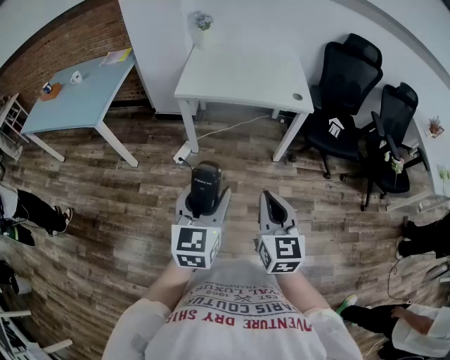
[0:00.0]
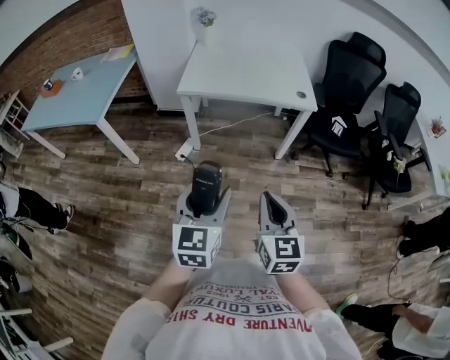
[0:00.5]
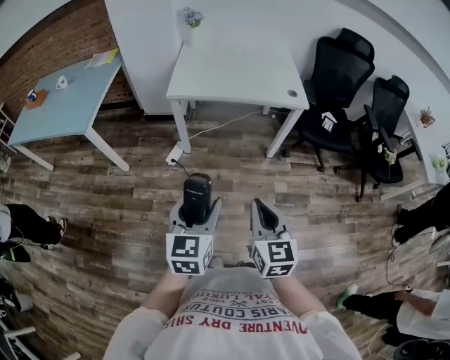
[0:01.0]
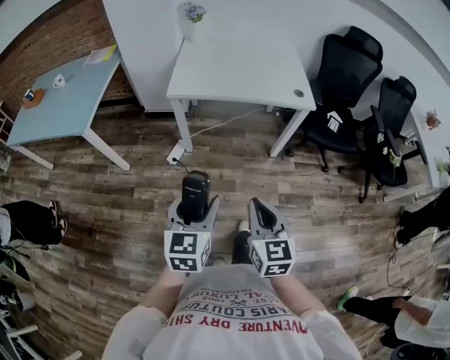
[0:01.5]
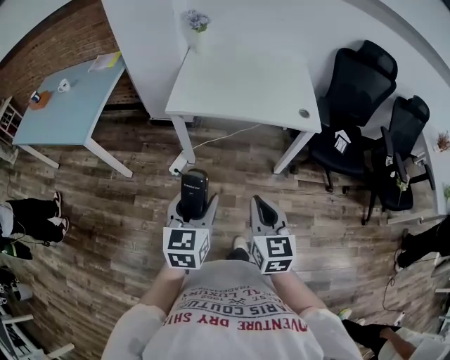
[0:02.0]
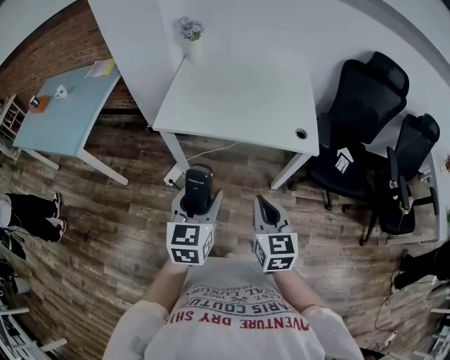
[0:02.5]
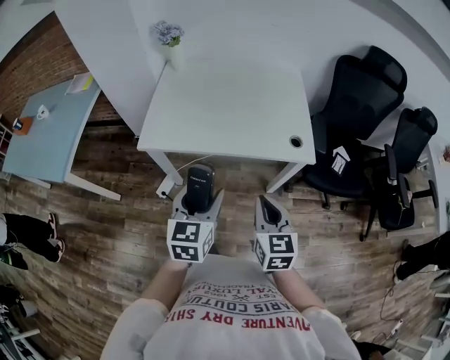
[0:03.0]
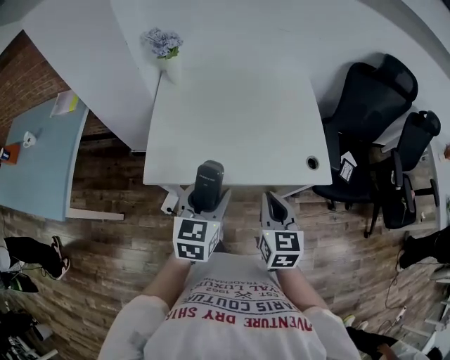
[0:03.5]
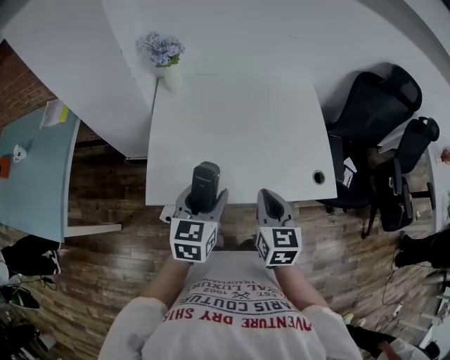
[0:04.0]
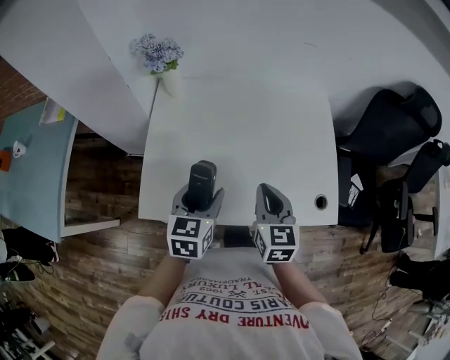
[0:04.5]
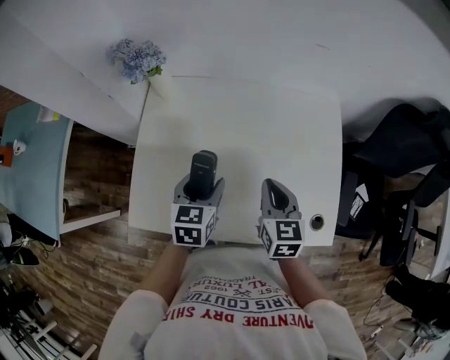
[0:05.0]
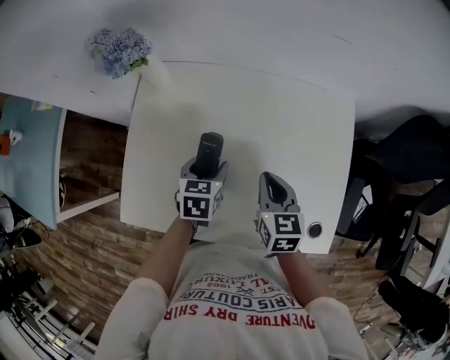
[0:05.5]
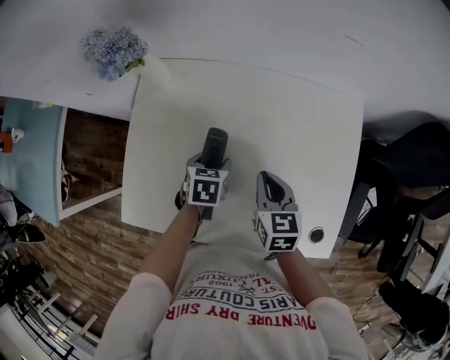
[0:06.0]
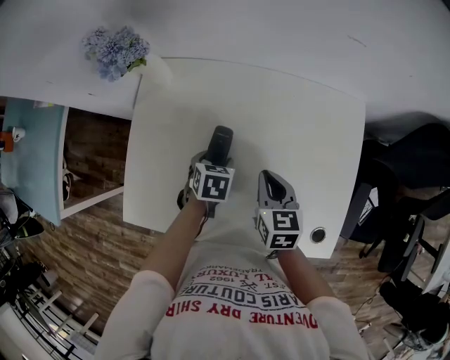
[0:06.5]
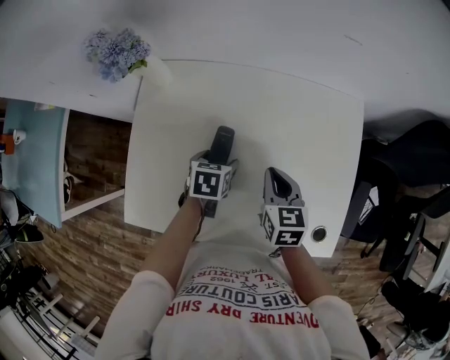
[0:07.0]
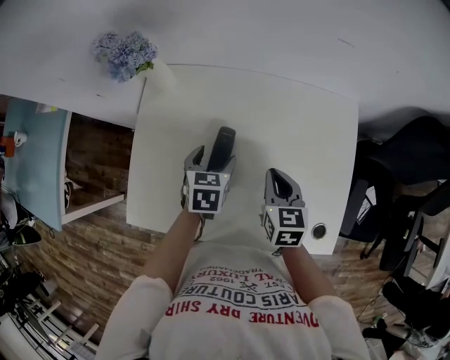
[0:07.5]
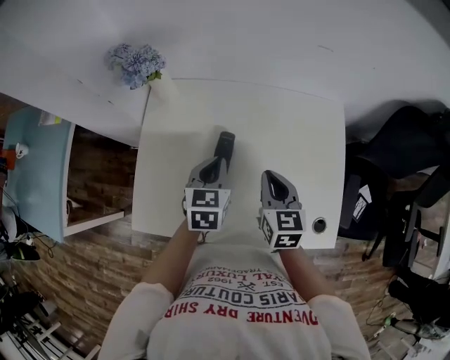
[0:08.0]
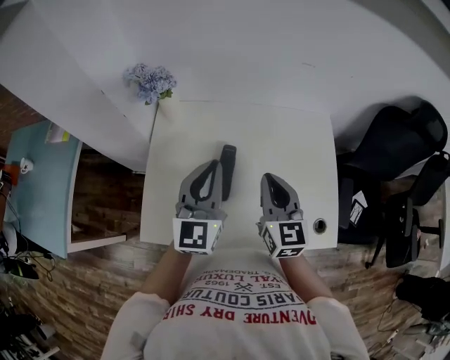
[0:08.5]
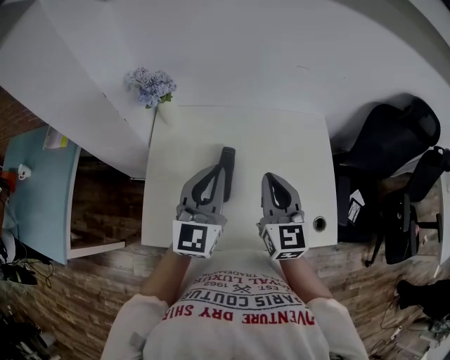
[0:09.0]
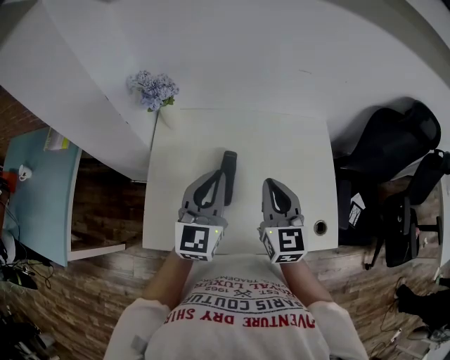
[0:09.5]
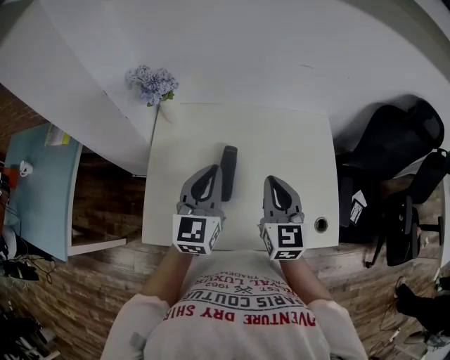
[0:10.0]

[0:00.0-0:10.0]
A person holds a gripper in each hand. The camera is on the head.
0:00.0 to 0:02.0: Both grippers travel together forward, some 20 cm.
0:02.0 to 0:04.0: The pair of grippers is taken forward, roughly 50 cm.
0:04.0 to 0:06.0: The grippers both shift forward and downward by some 30 cm. The left gripper angles its fingers downward, by about 40 degrees. The right gripper swivels approximately 20 degrees.
0:06.0 to 0:08.0: The right gripper shifts some 5 cm upward. The left gripper heads upward, covering approximately 15 cm, rotates some 30 degrees, and closes its fingers.
0:08.0 to 0:10.0: Both grippers move upward, some 10 cm. The left gripper swivels approximately 30 degrees.

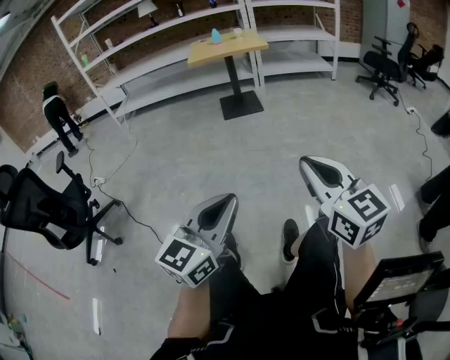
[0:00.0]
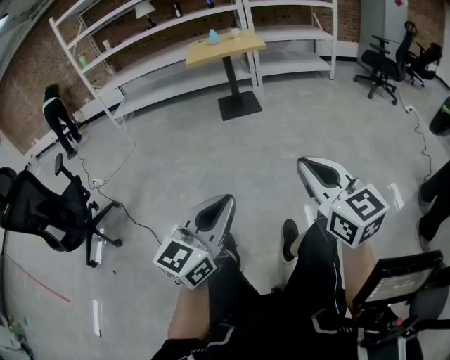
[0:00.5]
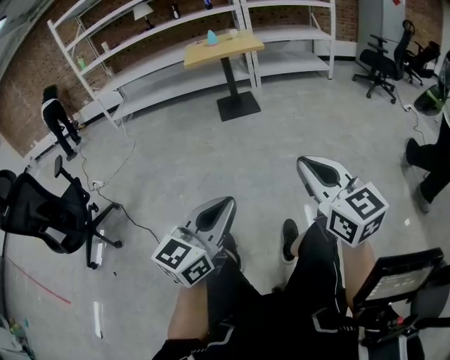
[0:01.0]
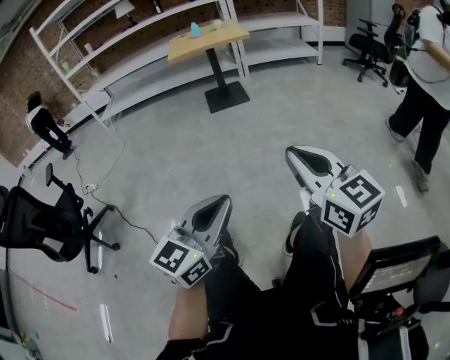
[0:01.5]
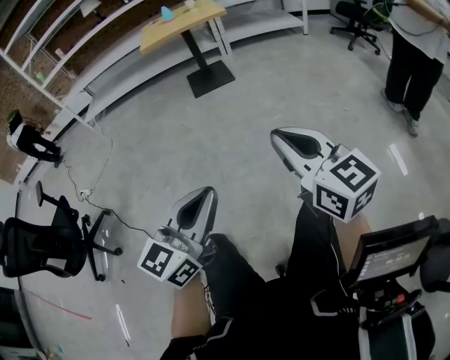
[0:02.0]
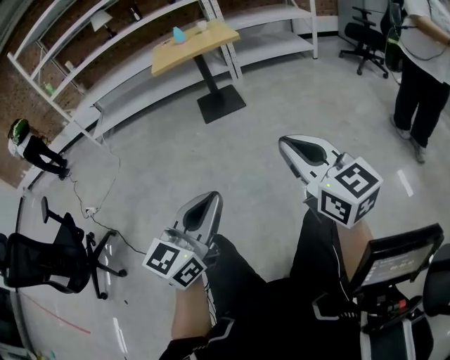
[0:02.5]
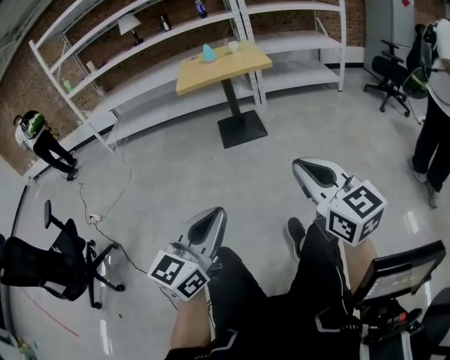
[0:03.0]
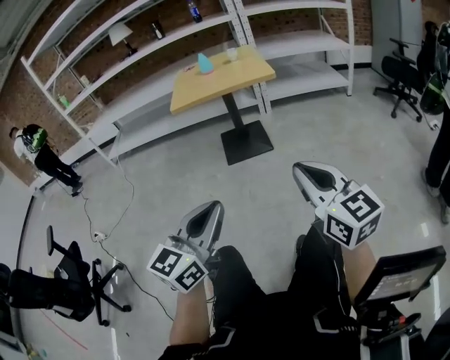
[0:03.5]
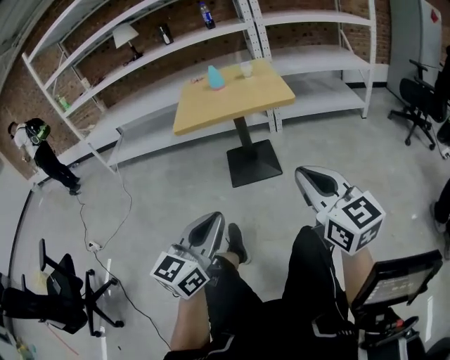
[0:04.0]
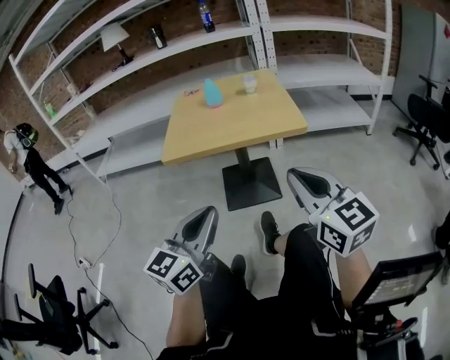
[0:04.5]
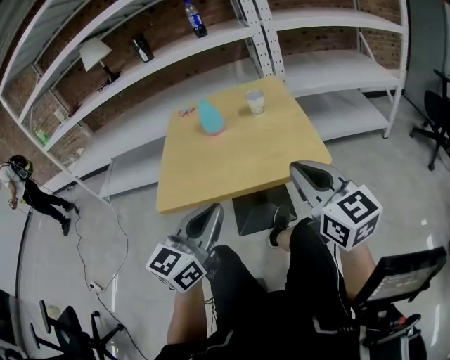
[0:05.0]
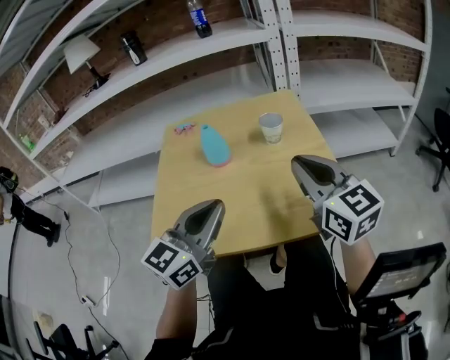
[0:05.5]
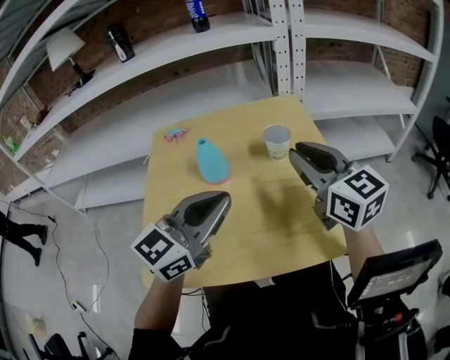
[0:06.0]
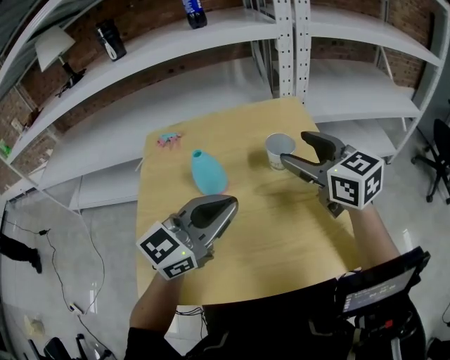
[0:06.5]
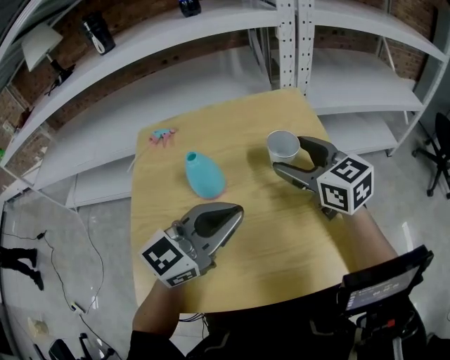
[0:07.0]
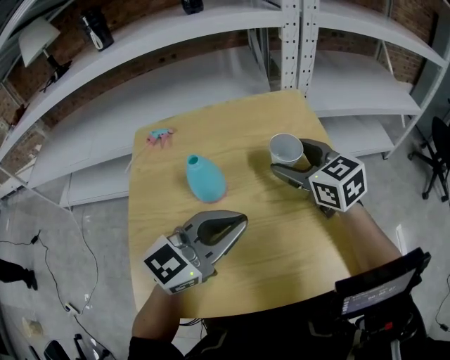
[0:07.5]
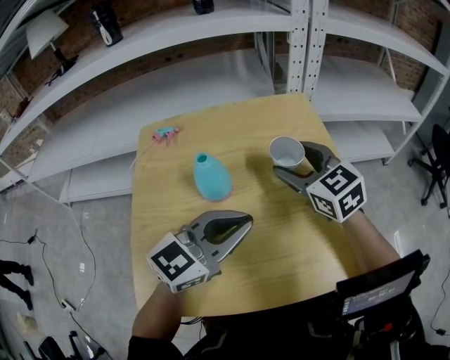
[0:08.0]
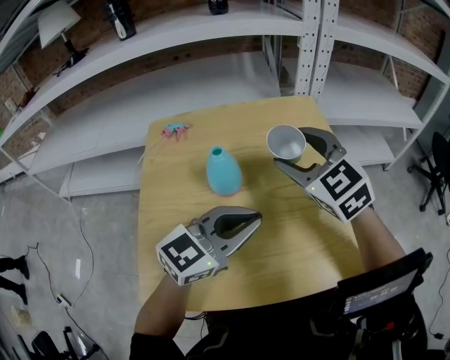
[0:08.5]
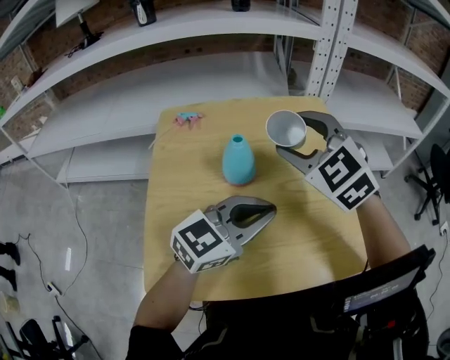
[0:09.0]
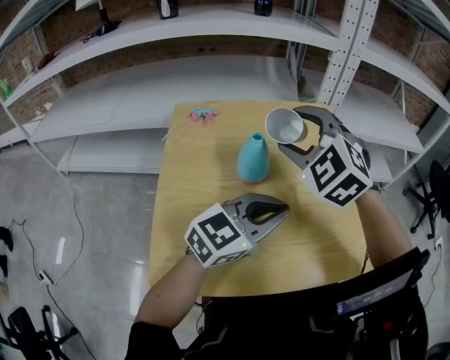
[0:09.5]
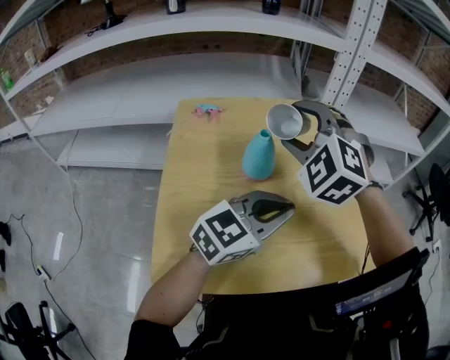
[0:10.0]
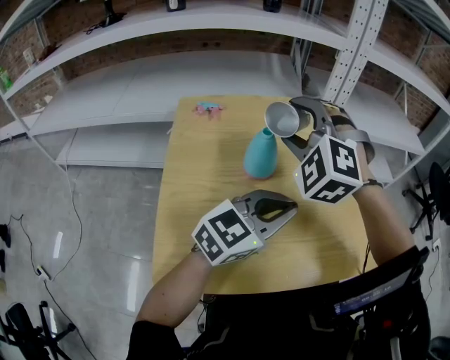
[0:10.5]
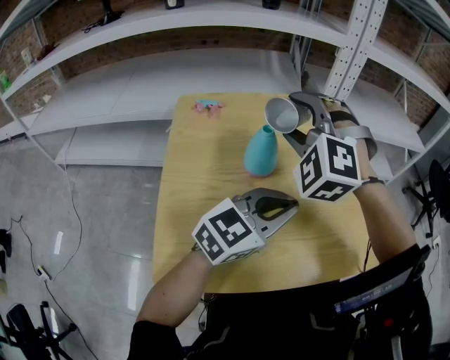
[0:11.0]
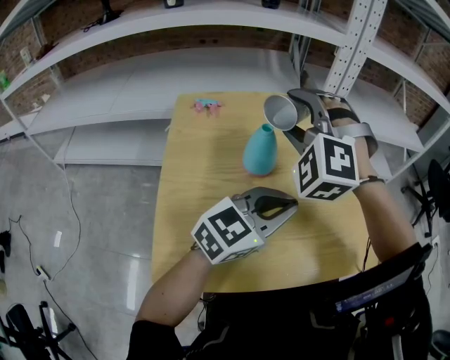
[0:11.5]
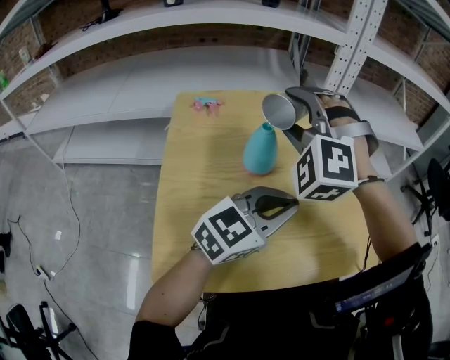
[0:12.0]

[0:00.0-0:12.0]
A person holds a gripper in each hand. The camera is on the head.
0:00.0 to 0:02.0: Both grippers move forward, about 10 cm.
0:02.0 to 0:04.0: The pair of grippers is taken forward, some 50 cm.
0:04.0 to 0:06.0: The two grippers travel together, forward, about 70 cm. The left gripper changes its angle by some 20 degrees.
0:06.0 to 0:08.0: The left gripper heads downward, covering about 5 cm, while the right gripper travels forward, downward and to the left by about 15 cm, turns by roughly 20 degrees, and opens.
0:08.0 to 0:10.0: The right gripper travels to the left, upward and backward by roughly 15 cm, and rolls counterclockwise, seen from behind, by roughly 50 degrees.
0:10.0 to 0:12.0: There are only small adjustments of the grippers.

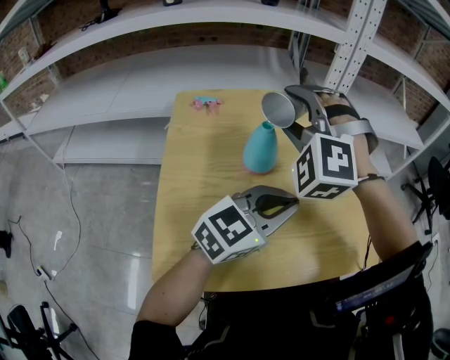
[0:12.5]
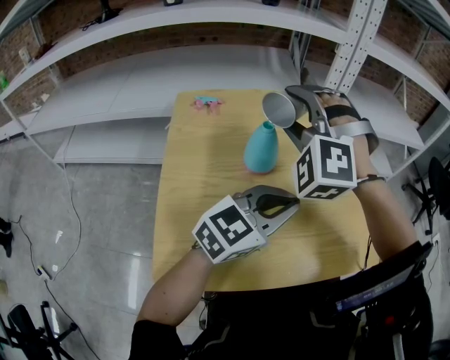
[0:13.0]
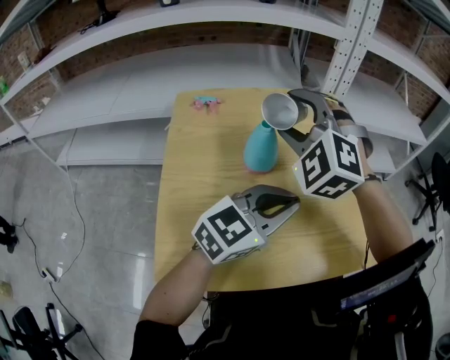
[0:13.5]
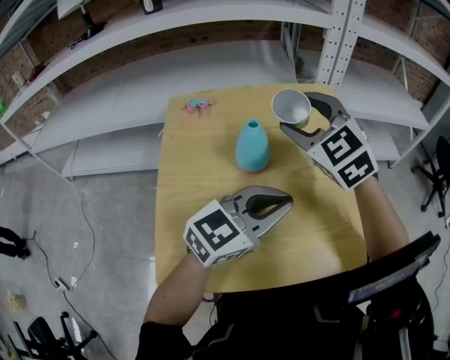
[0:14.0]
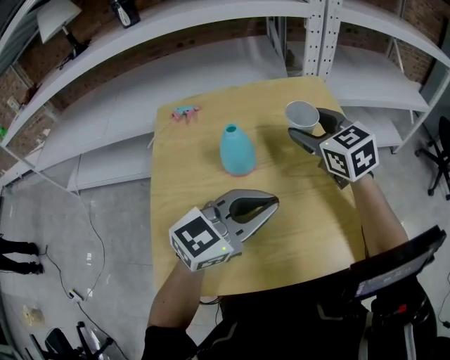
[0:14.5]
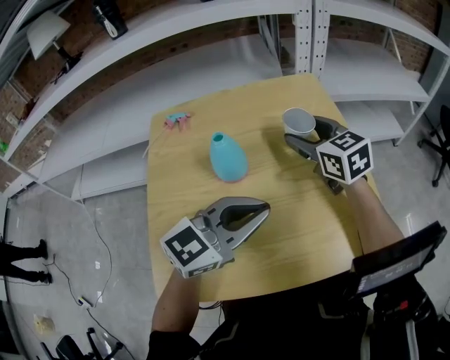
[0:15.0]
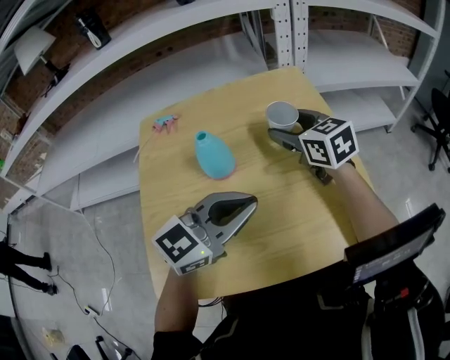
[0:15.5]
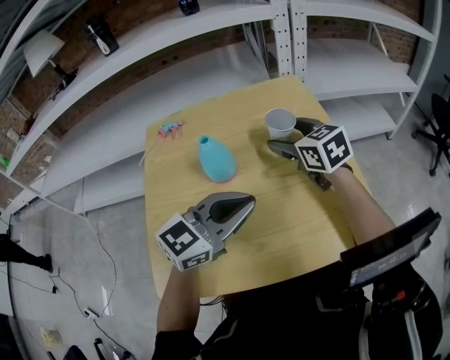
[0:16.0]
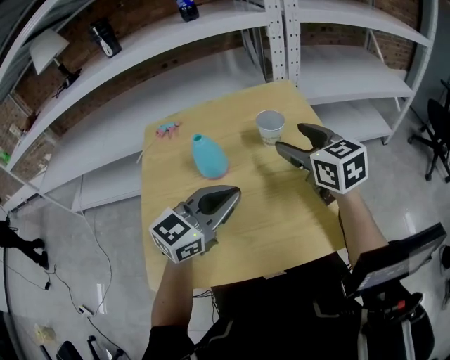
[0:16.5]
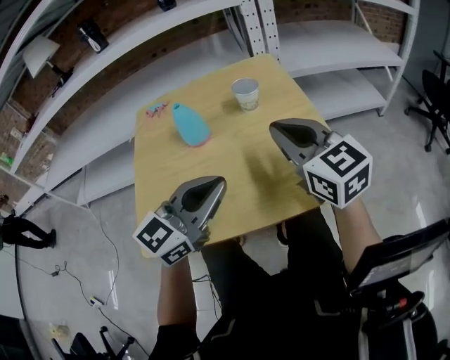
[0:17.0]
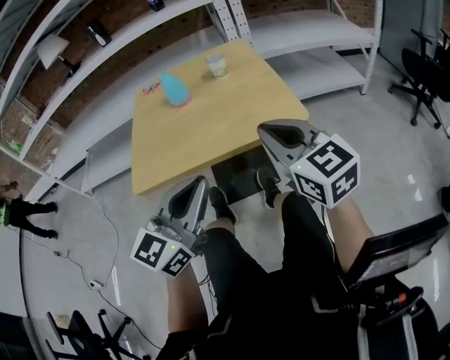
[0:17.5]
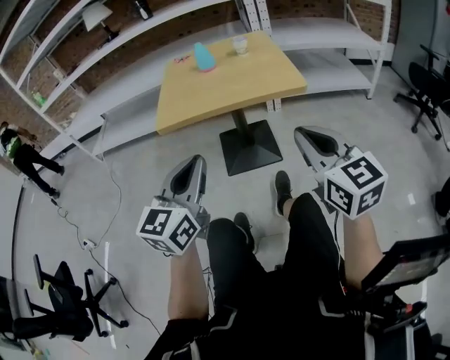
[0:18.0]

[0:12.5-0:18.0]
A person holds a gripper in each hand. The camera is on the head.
0:12.5 to 0:14.5: The right gripper moves to the right, downward and forward, about 15 cm, and twists roughly 70 degrees clockwise, seen from behind.
0:14.5 to 0:16.0: The grippers make only small movements.
0:16.0 to 0:18.0: The two grippers travel together, backward, some 50 cm. The left gripper turns by approximately 40 degrees; the right gripper changes its angle by approximately 20 degrees, and closes.
